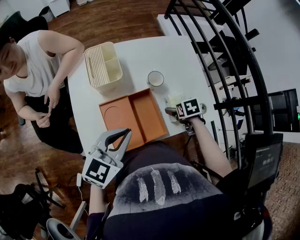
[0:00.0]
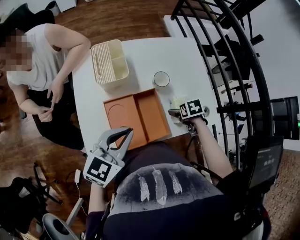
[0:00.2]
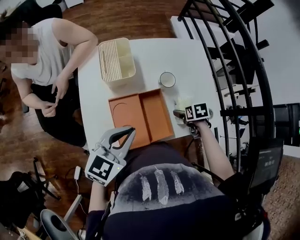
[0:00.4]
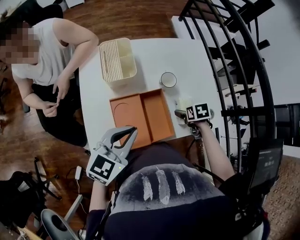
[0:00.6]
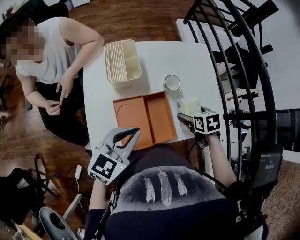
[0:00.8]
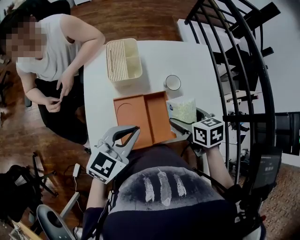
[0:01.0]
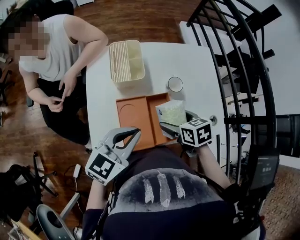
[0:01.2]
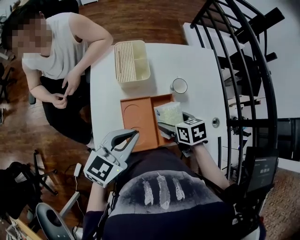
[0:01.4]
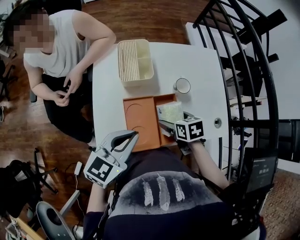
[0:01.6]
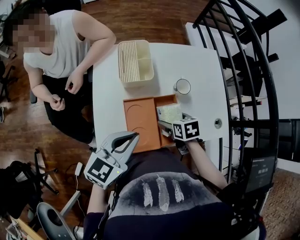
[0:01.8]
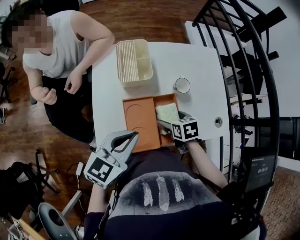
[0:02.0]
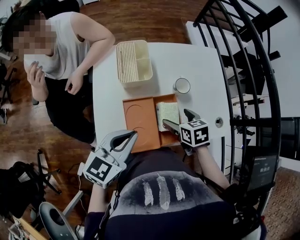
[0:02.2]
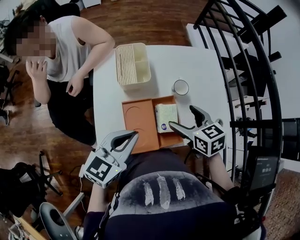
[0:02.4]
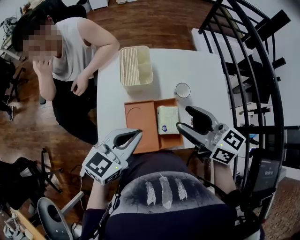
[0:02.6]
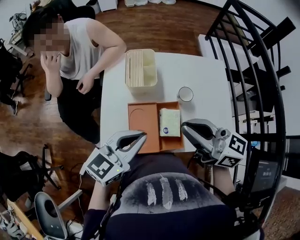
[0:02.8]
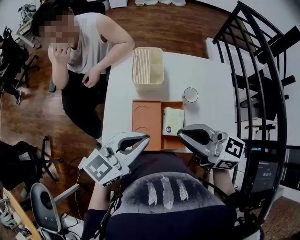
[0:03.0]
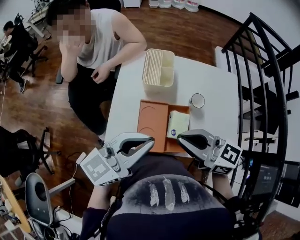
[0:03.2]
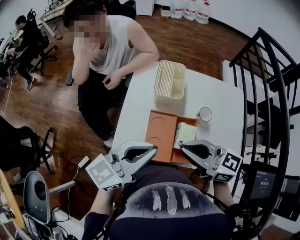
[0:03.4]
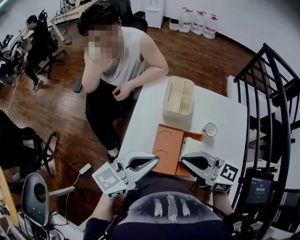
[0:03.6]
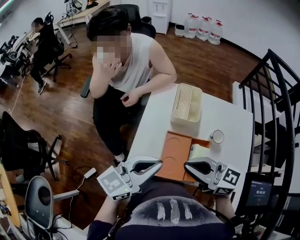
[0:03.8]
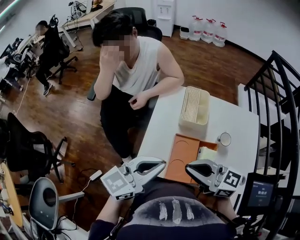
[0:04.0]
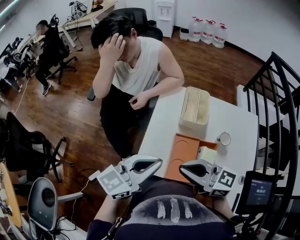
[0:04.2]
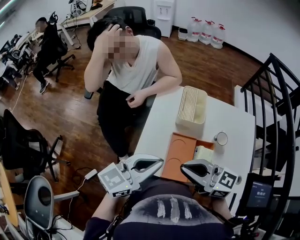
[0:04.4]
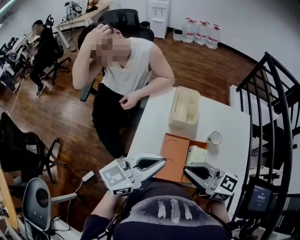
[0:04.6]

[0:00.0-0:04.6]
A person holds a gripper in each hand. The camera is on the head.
0:00.0 to 0:01.6: The left gripper shifts by some 5 cm, while the right gripper moves roughly 15 cm upward and comes back, and turns by about 20 degrees.
0:01.6 to 0:03.0: The right gripper heads upward, covering about 25 cm, angles its fingers upward, by some 60 degrees, and closes up. The left gripper travels upward by some 5 cm.
0:03.0 to 0:04.6: The two grippers go some 10 cm to the left.

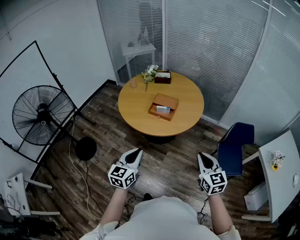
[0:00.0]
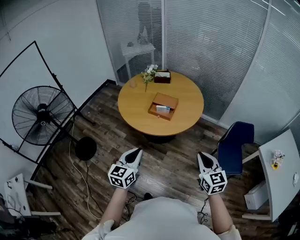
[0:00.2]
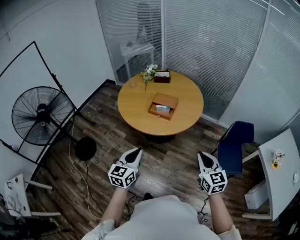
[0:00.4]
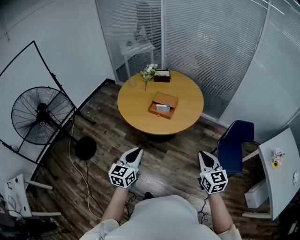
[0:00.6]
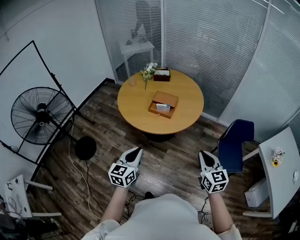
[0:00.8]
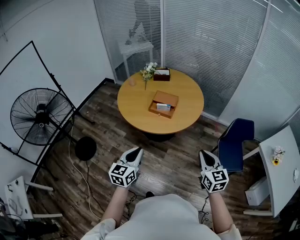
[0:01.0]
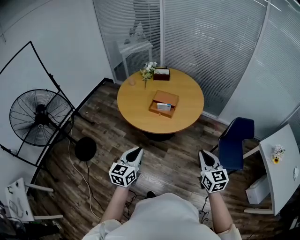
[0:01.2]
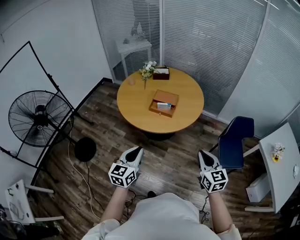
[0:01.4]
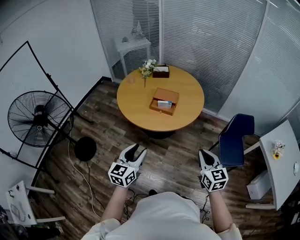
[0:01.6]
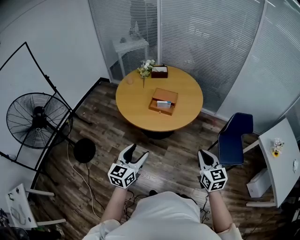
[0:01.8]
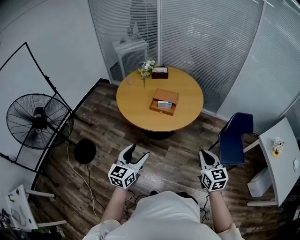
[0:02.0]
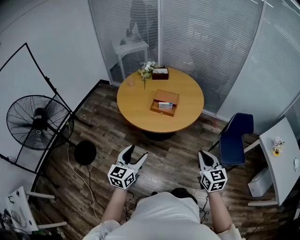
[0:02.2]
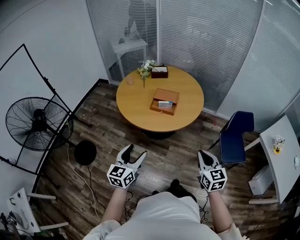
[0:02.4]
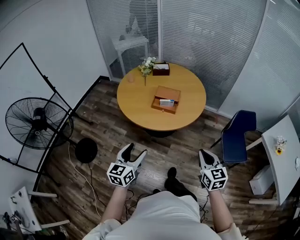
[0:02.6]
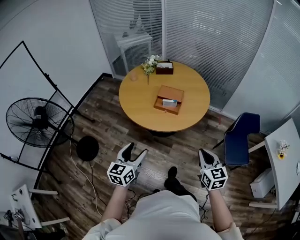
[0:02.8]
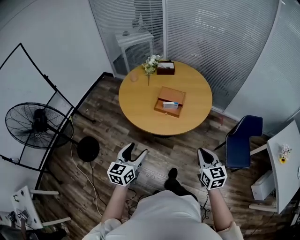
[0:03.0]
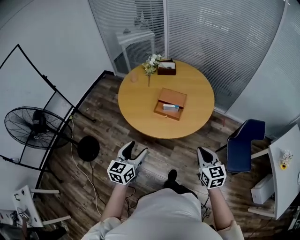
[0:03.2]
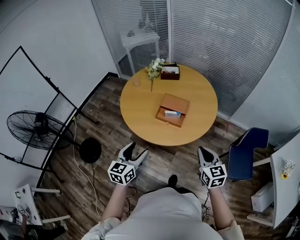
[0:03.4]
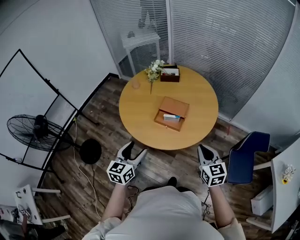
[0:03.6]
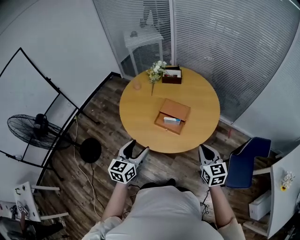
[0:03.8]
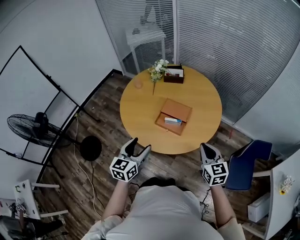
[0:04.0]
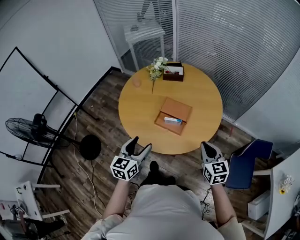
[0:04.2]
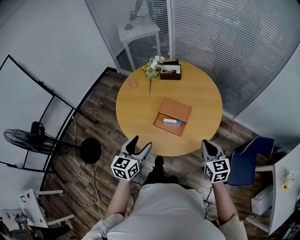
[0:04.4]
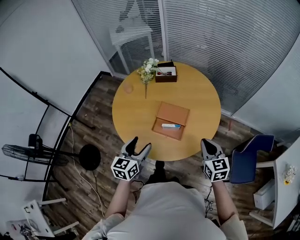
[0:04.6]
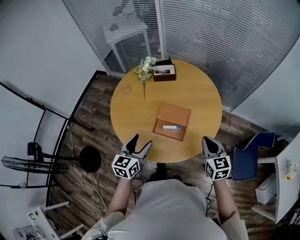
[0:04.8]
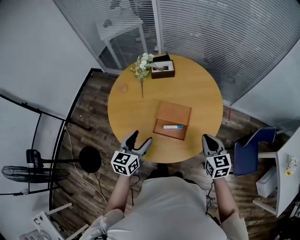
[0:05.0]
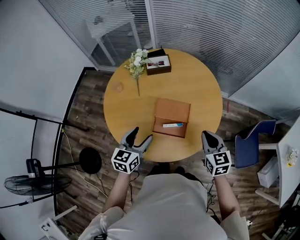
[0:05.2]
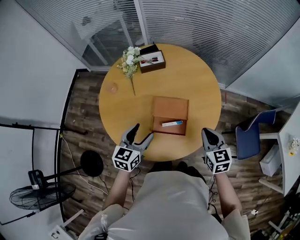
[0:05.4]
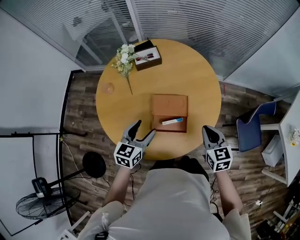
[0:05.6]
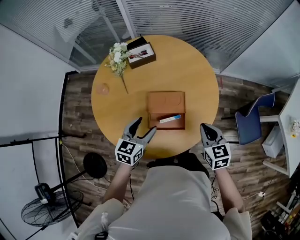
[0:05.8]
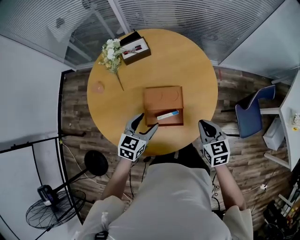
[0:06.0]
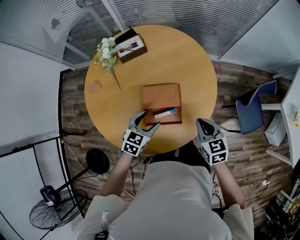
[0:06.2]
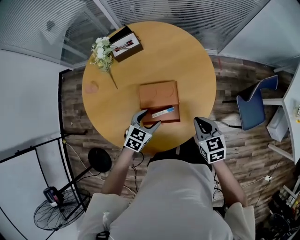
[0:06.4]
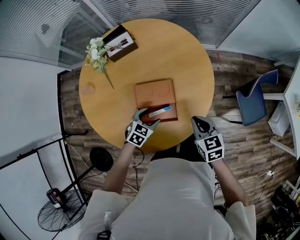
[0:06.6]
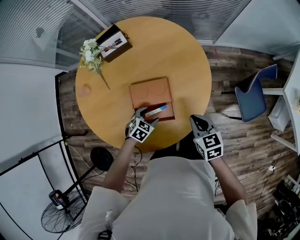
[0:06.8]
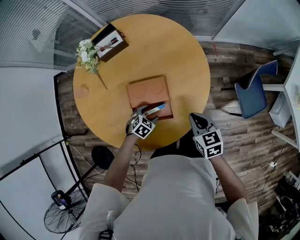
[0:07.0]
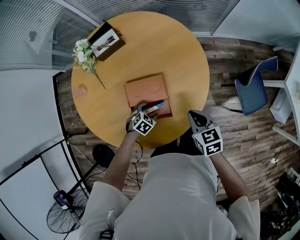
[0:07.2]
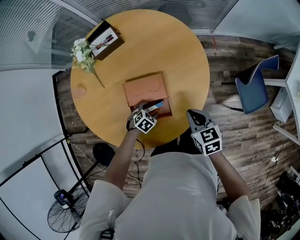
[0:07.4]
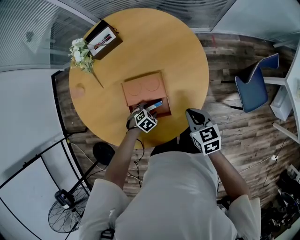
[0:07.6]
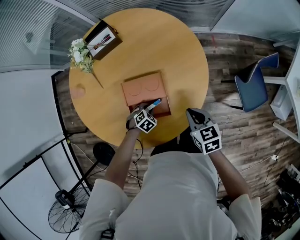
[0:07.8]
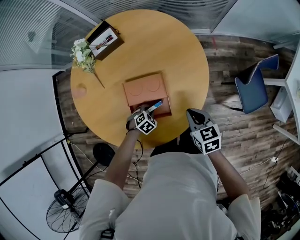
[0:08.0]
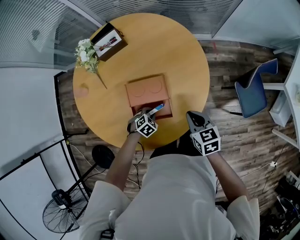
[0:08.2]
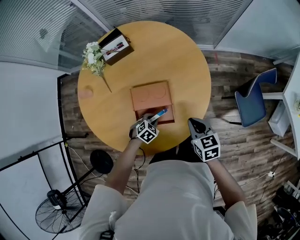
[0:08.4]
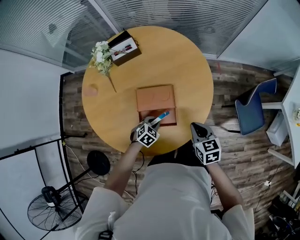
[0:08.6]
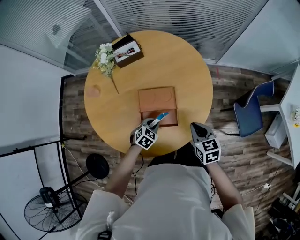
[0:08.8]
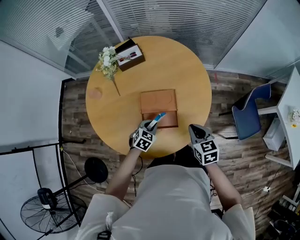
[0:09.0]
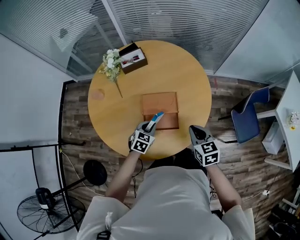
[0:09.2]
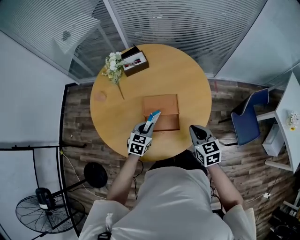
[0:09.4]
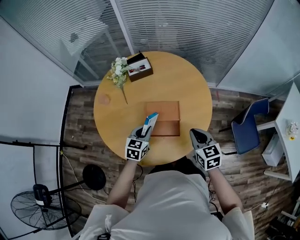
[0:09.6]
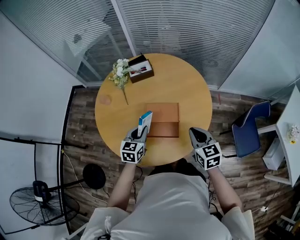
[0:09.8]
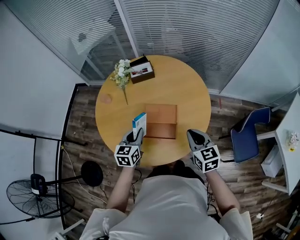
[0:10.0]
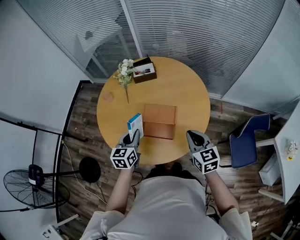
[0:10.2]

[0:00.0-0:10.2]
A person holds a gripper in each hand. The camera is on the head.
0:00.0 to 0:01.4: The grippers both shift to the left by approximately 5 cm.
0:01.4 to 0:03.0: The grippers both shift forward and to the left by approximately 15 cm. The left gripper opens its fingers.
0:03.0 to 0:04.4: The grippers both shift forward by some 35 cm.
0:04.4 to 0:05.8: The left gripper moves forward, about 30 cm, and swivels some 30 degrees. Meanwhile the right gripper is displaced forward, downward and to the left by some 25 cm, and swivels roughly 20 degrees.
0:05.8 to 0:07.2: The left gripper moves downward and to the right, about 30 cm, and tips its fingers downward by approximately 40 degrees, while the right gripper is displaced downward, to the right and forward by about 15 cm.
0:07.2 to 0:08.8: The right gripper changes place by approximately 10 cm; the left gripper is displaced upward by approximately 10 cm, and closes up.
0:08.8 to 0:10.2: The right gripper shifts roughly 15 cm upward, and rotates some 20 degrees. Meanwhile the left gripper travels upward by about 25 cm, and points its fingers approximately 30 degrees further upward.

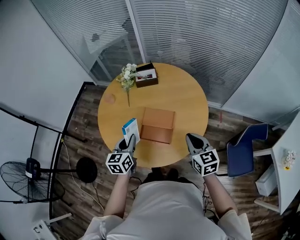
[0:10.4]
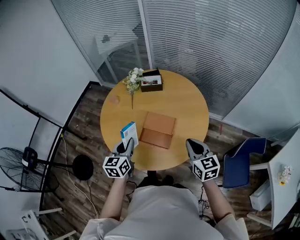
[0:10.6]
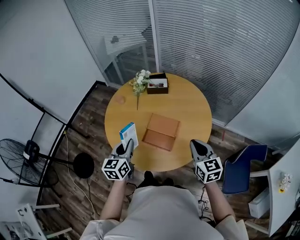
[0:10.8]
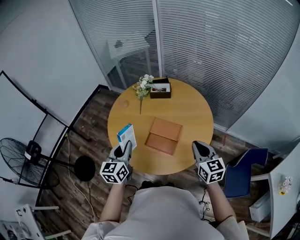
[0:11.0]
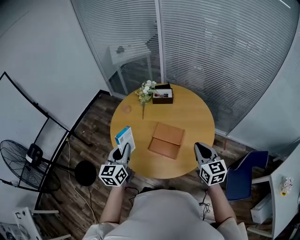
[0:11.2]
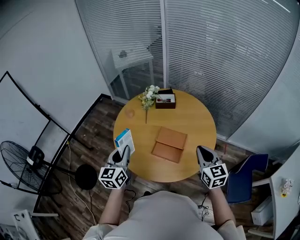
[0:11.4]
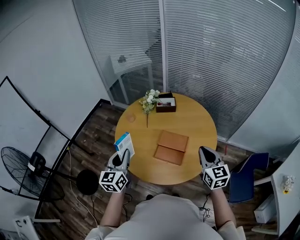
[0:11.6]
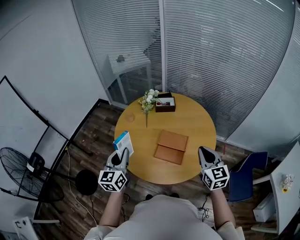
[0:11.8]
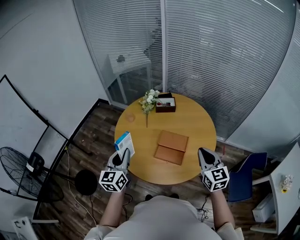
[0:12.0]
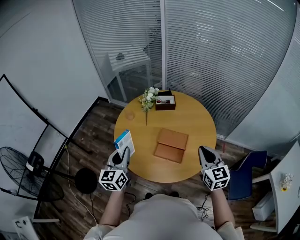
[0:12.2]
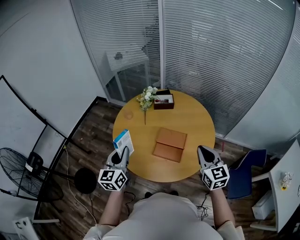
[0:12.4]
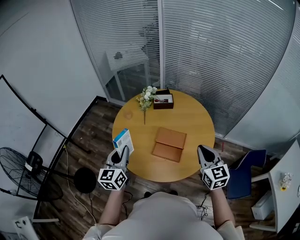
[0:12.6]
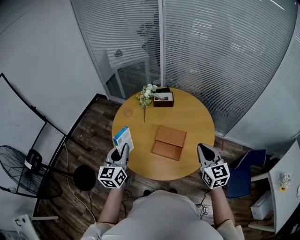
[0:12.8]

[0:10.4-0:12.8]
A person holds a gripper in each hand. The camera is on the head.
0:10.4 to 0:11.6: The right gripper is displaced upward and to the left by some 15 cm; the left gripper shifts approximately 25 cm to the left, upward and backward.
0:11.6 to 0:12.8: The grippers move only a little.

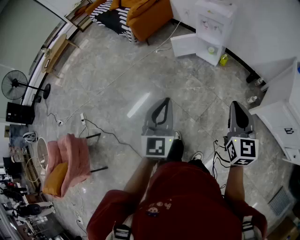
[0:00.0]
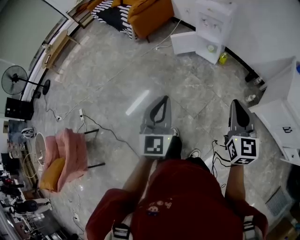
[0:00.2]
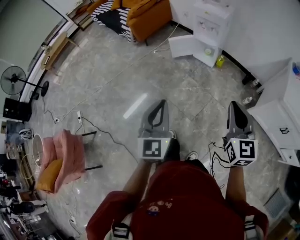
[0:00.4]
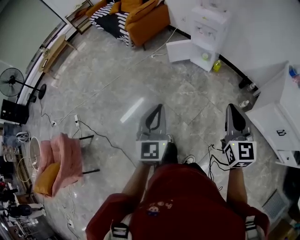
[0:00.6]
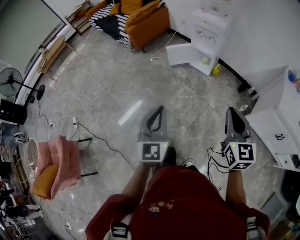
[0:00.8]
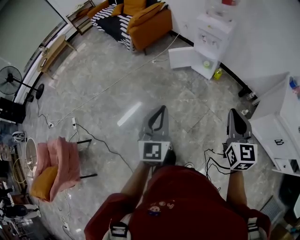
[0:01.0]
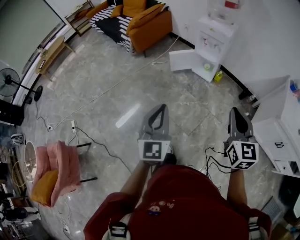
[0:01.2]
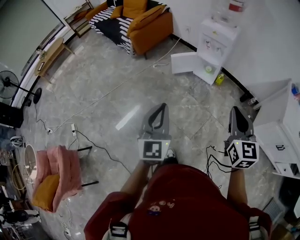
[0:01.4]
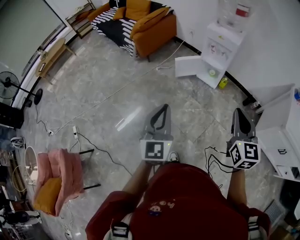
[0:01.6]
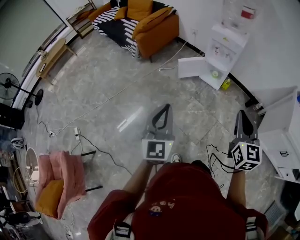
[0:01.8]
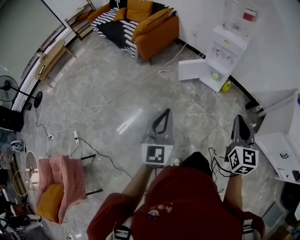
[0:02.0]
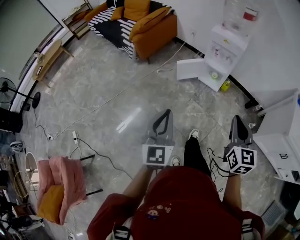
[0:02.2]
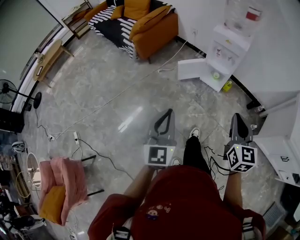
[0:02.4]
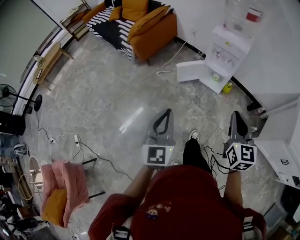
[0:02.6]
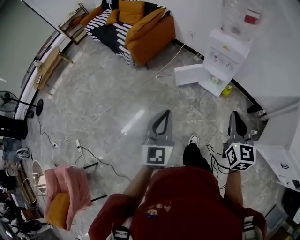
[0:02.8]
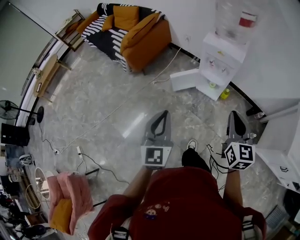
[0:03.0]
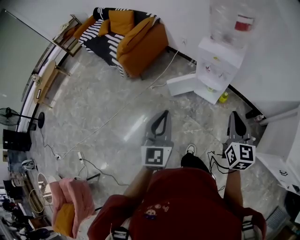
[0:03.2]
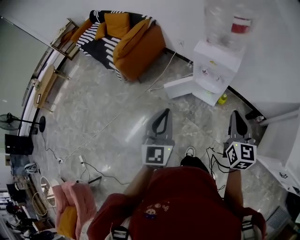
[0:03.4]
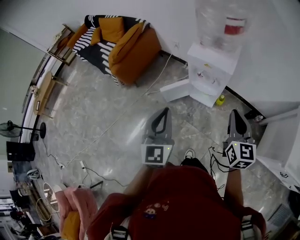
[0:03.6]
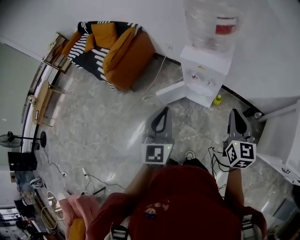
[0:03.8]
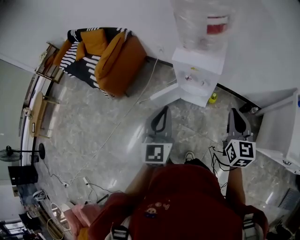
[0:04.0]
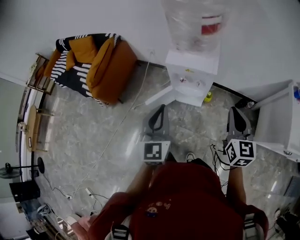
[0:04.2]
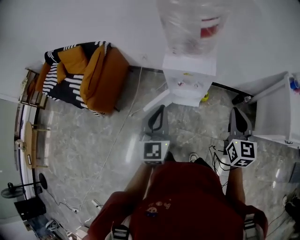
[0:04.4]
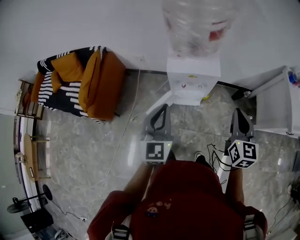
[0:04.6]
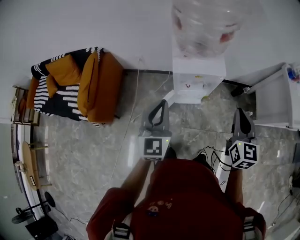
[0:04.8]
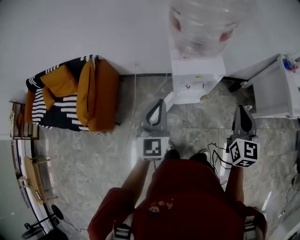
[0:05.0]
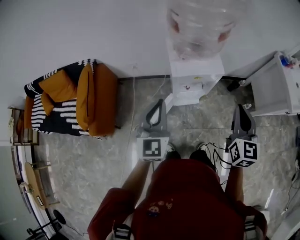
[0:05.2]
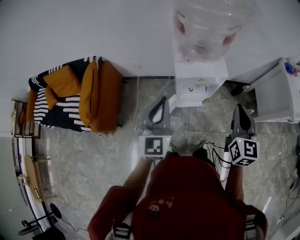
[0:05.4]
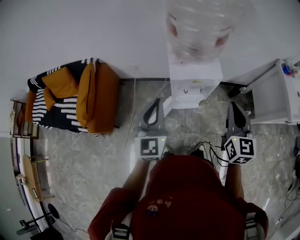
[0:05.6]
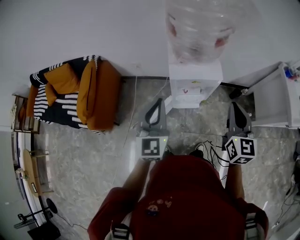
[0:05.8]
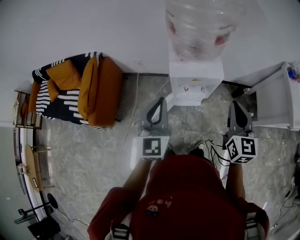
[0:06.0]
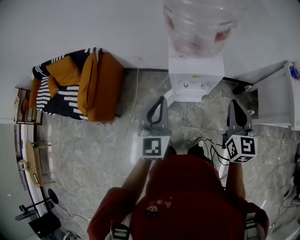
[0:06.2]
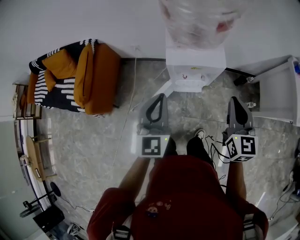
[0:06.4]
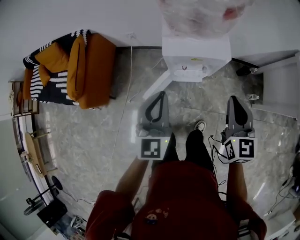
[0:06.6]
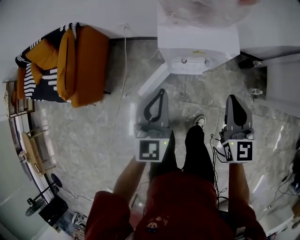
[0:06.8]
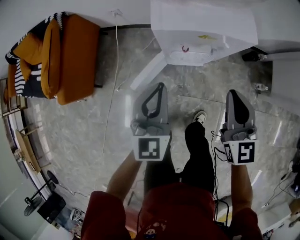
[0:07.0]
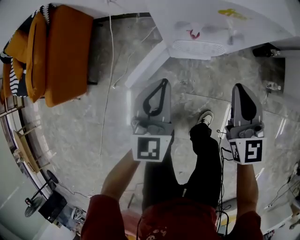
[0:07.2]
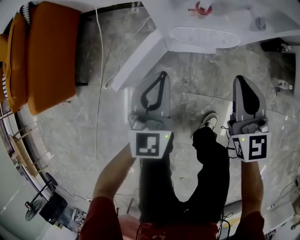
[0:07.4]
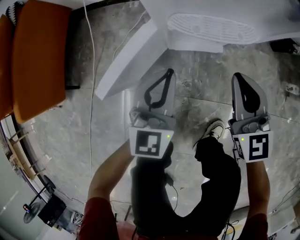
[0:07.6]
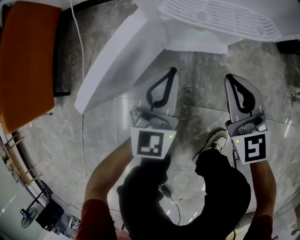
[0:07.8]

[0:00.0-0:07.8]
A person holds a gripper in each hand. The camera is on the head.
0:00.0 to 0:01.6: The left gripper moves to the left and forward, roughly 15 cm; the right gripper is displaced forward and to the left by approximately 15 cm.
0:01.6 to 0:03.2: Both grippers travel together forward, roughly 40 cm.
0:03.2 to 0:04.6: The right gripper moves about 20 cm, and changes its angle by roughly 30 degrees; the left gripper changes place by approximately 30 cm, and turns by about 30 degrees.
0:04.6 to 0:06.2: The left gripper is displaced forward by roughly 5 cm; the right gripper travels to the left by approximately 5 cm.
0:06.2 to 0:07.8: The two grippers go approximately 80 cm downward. The right gripper turns by some 20 degrees.
